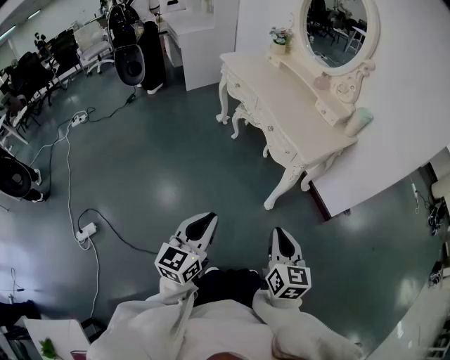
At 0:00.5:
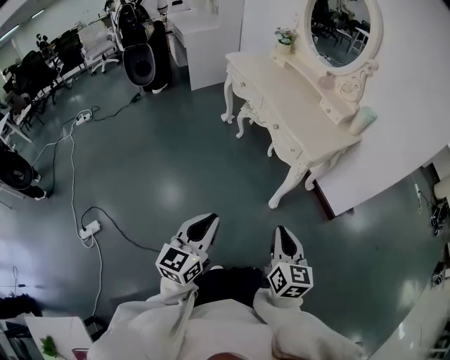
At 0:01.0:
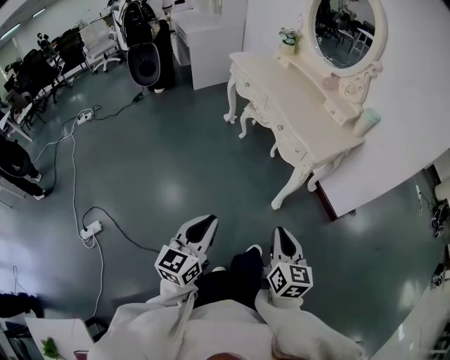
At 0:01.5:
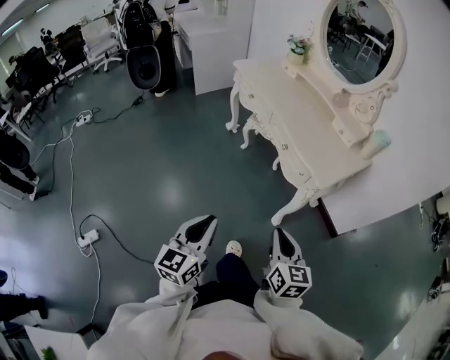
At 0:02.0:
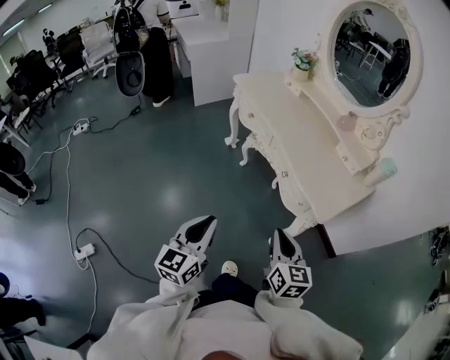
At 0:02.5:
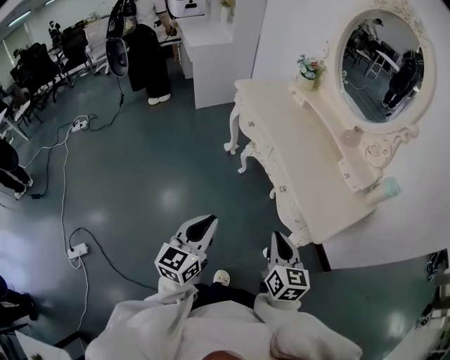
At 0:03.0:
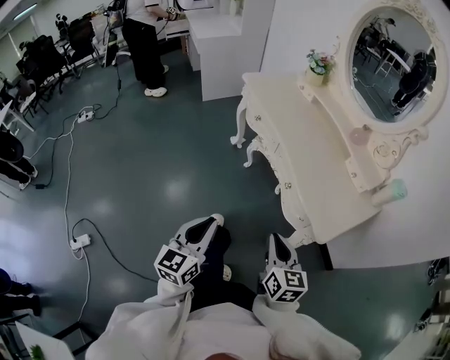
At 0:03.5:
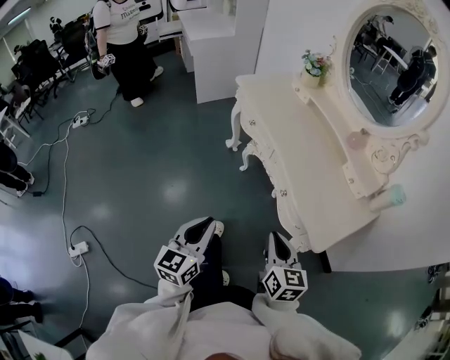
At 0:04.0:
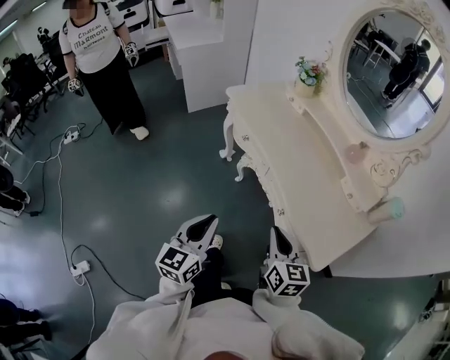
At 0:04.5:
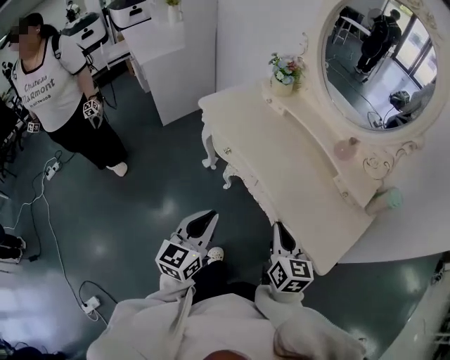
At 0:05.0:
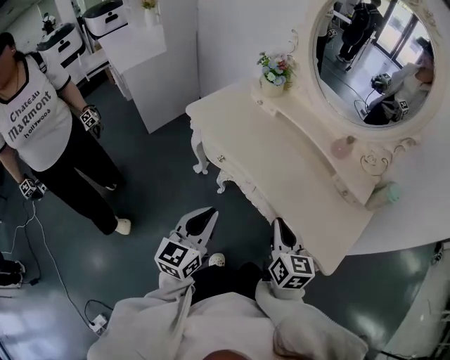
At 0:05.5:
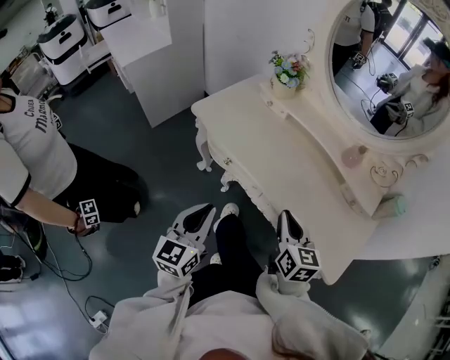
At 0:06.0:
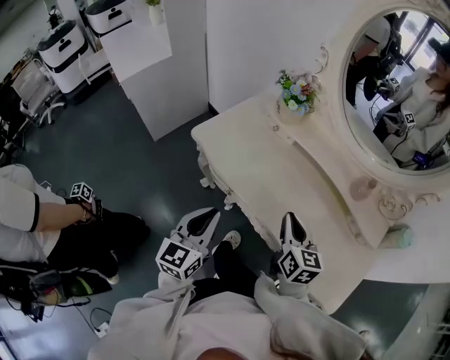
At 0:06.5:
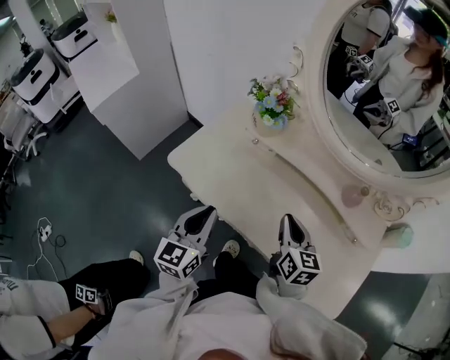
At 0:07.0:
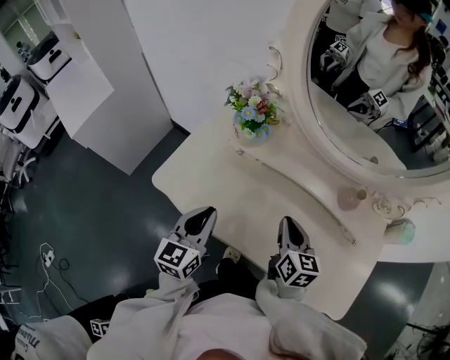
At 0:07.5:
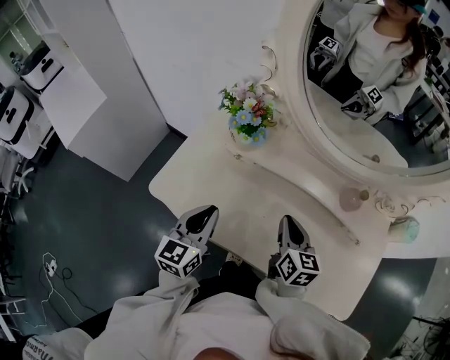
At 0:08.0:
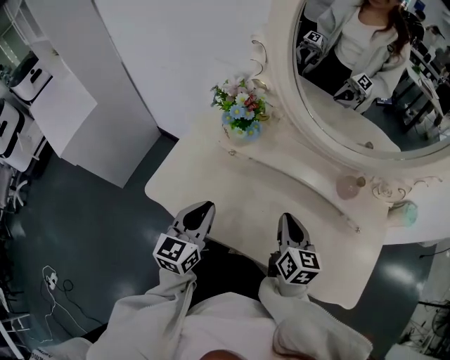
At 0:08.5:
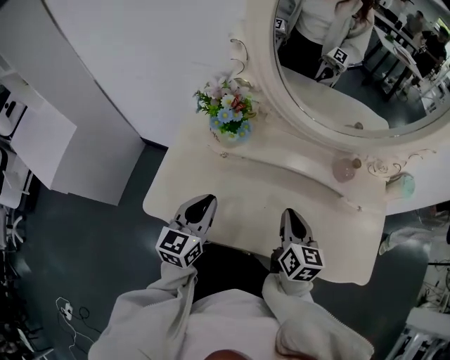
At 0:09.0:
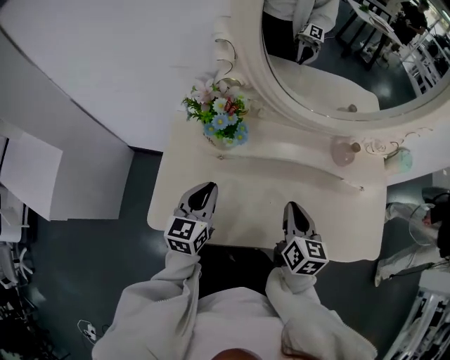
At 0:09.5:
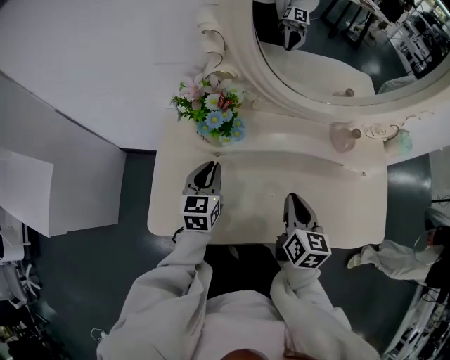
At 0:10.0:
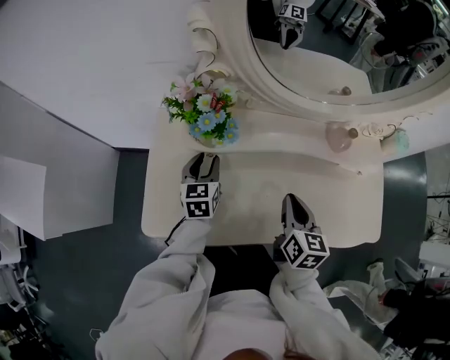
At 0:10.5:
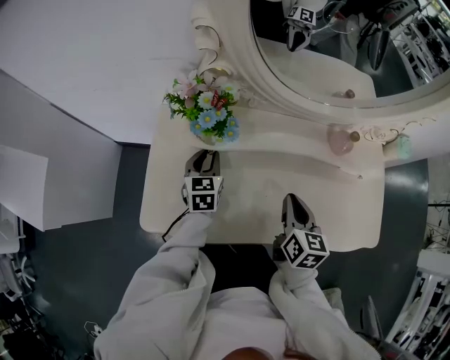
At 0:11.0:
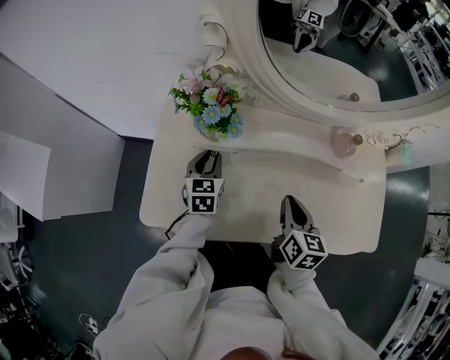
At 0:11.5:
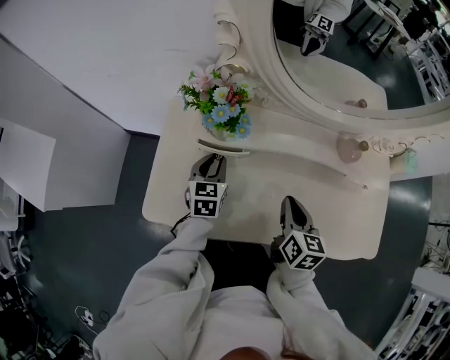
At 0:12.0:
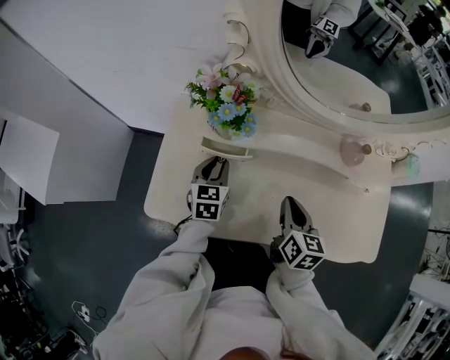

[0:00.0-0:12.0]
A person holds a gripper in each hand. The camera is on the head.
0:00.0 to 0:02.0: The grippers both shift forward by roughly 20 cm.
0:02.0 to 0:04.0: The grippers both shift forward by some 20 cm.
0:04.0 to 0:06.0: The grippers both shift forward by about 30 cm. The right gripper turns by approximately 20 degrees.
0:06.0 to 0:08.0: The right gripper moves forward, roughly 10 cm, and turns by roughly 20 degrees; the left gripper goes some 20 cm forward.
0:08.0 to 0:10.0: The right gripper changes its angle by some 30 degrees. Meanwhile the left gripper goes approximately 20 cm forward and downward, and opens its fingers.
0:10.0 to 0:12.0: The grippers stay close to where they were, moving slightly.

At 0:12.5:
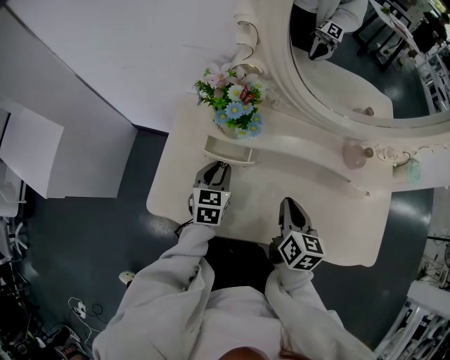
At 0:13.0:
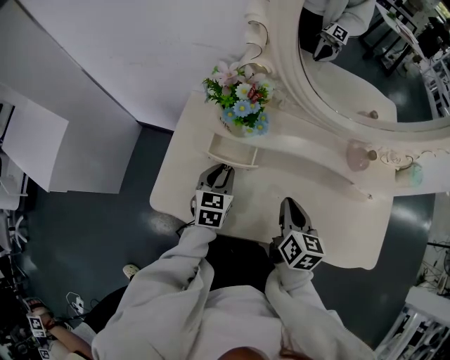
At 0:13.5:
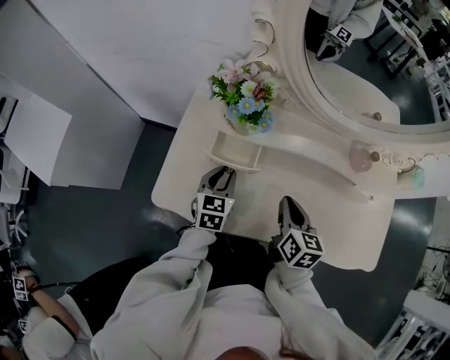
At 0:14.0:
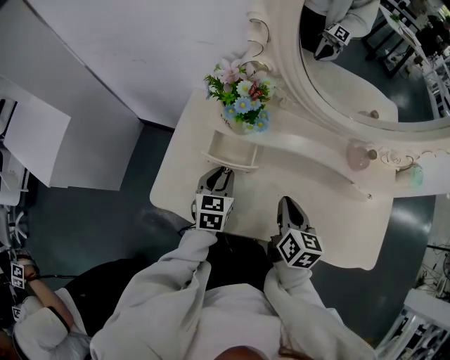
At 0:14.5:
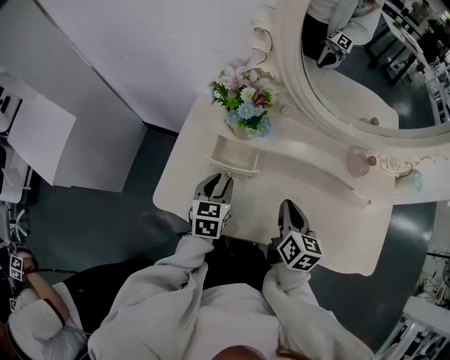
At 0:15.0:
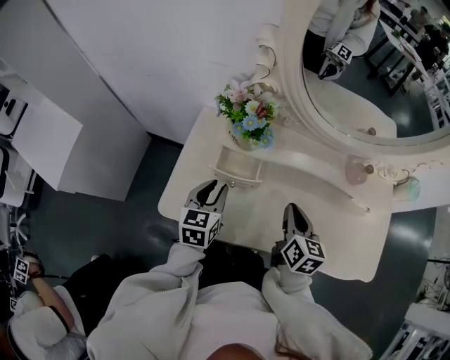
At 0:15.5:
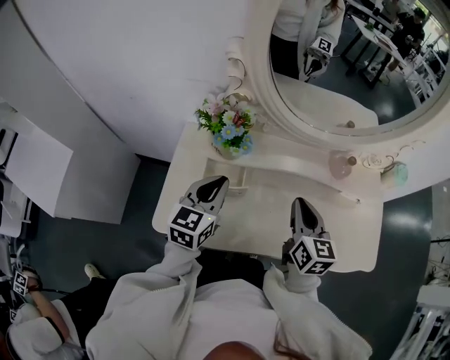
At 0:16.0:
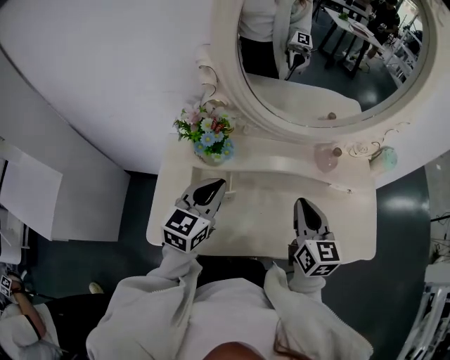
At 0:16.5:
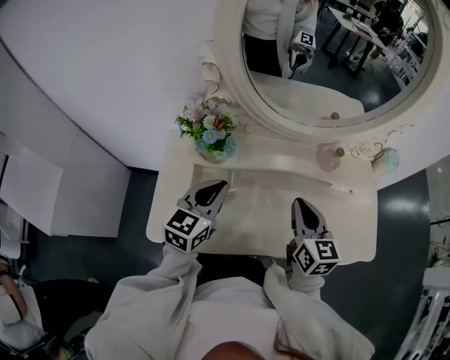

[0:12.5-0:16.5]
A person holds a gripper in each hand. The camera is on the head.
0:12.5 to 0:14.5: The left gripper changes place by roughly 5 cm.
0:14.5 to 0:16.5: The left gripper is displaced upward by some 15 cm, changes its angle by about 30 degrees, and closes its fingers, while the right gripper is displaced upward and to the right by about 10 cm.

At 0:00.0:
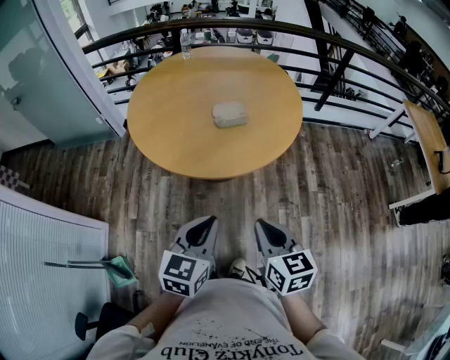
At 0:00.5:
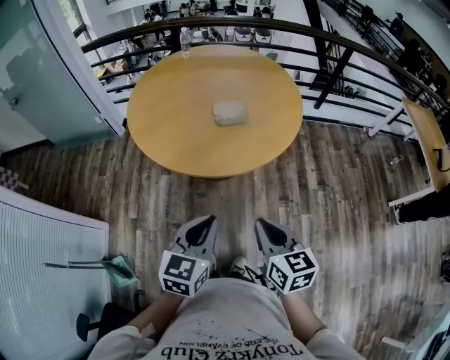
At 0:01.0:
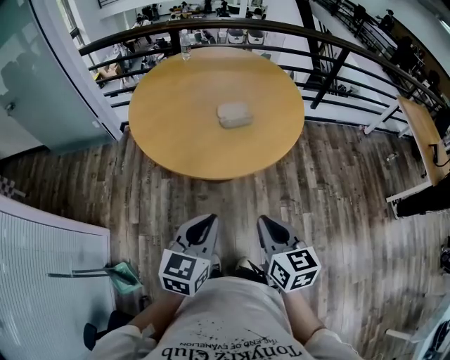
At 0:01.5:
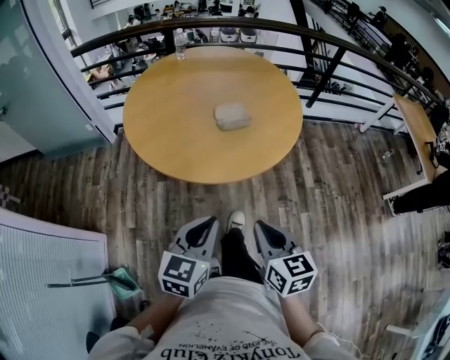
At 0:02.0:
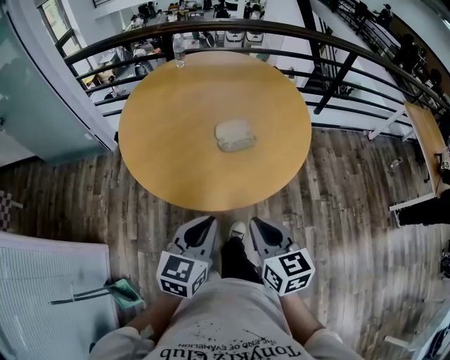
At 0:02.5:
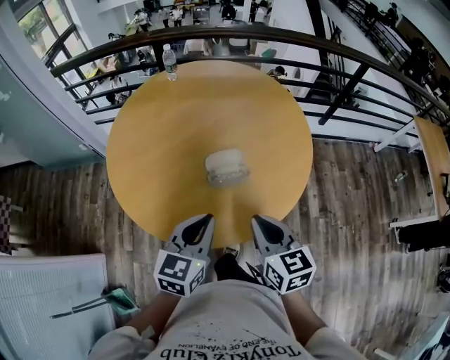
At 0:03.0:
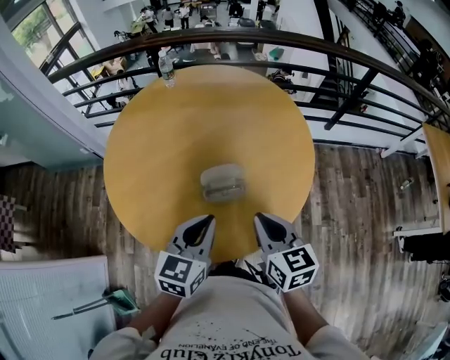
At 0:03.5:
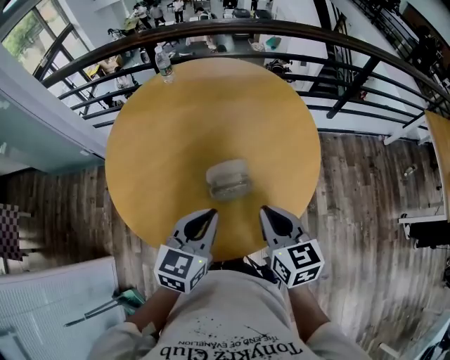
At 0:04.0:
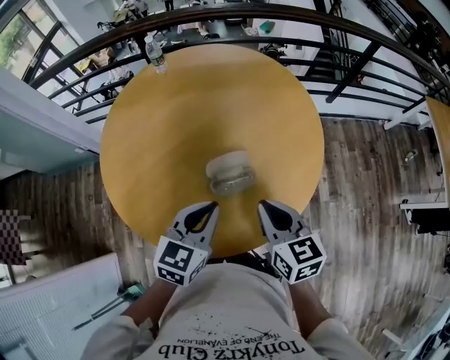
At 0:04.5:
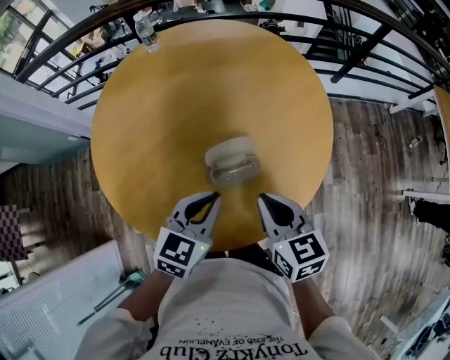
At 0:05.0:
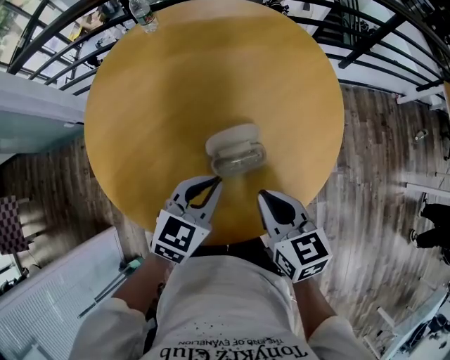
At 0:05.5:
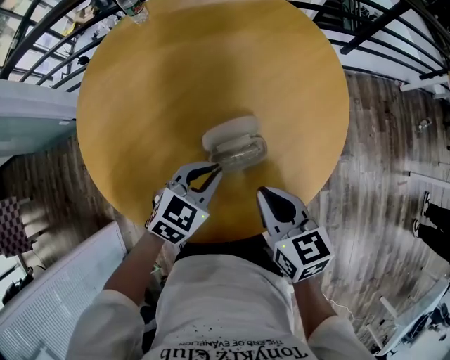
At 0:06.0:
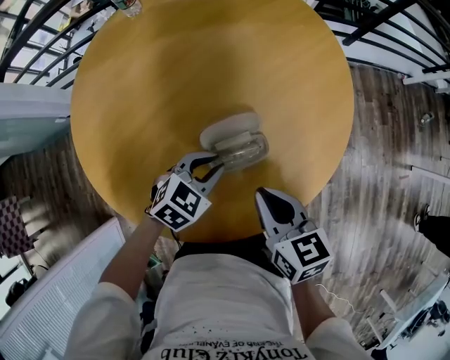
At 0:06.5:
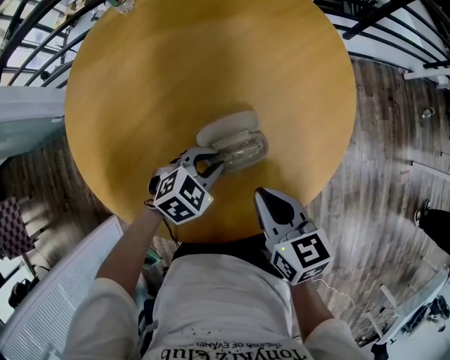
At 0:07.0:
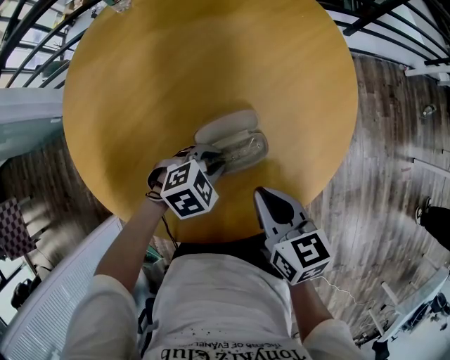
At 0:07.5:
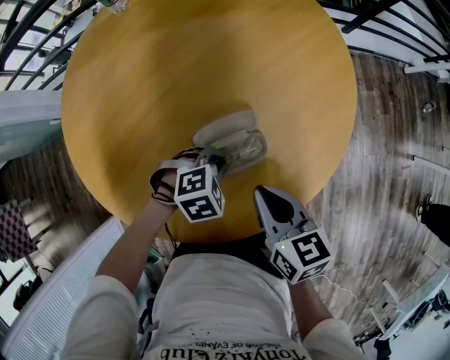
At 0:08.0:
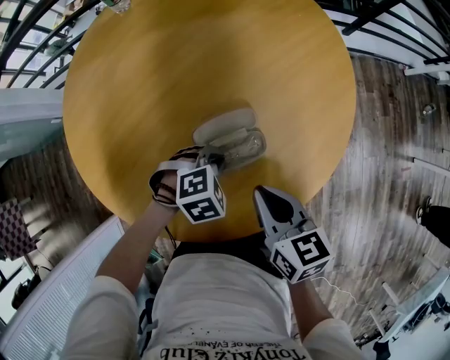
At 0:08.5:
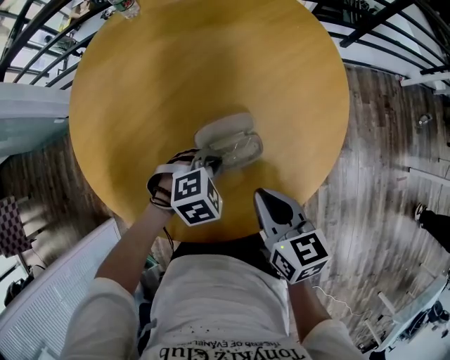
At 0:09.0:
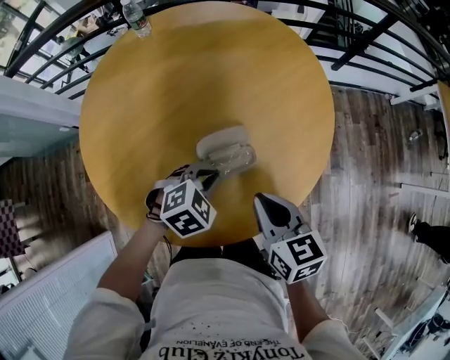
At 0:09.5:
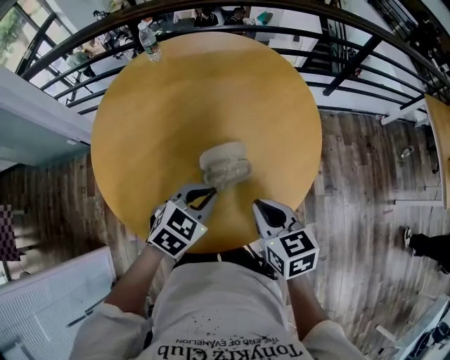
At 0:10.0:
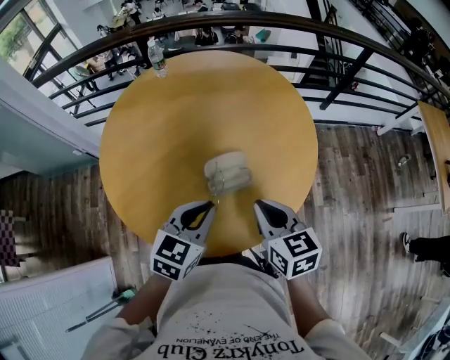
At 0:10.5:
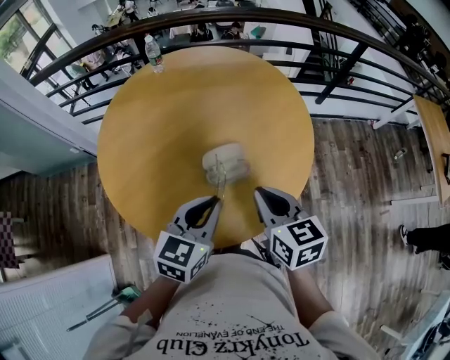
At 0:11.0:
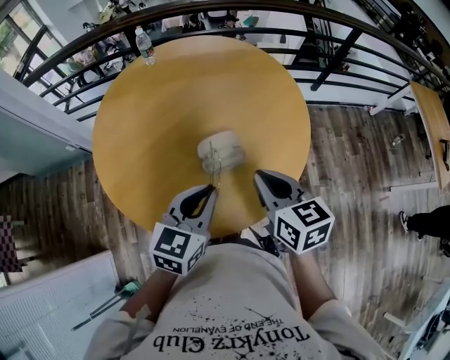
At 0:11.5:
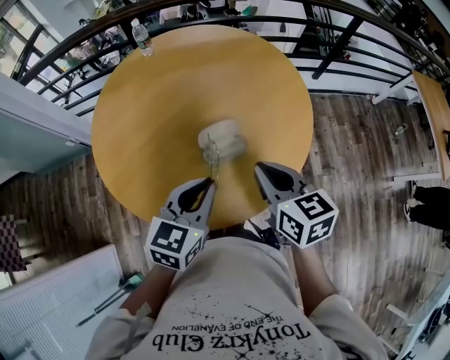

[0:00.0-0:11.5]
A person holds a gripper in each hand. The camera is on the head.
0:00.0 to 0:02.0: Both grippers move forward and to the left, some 15 cm.
0:02.0 to 0:04.0: The grippers both shift forward by about 30 cm.
0:04.0 to 0:06.0: The right gripper is displaced downward by about 10 cm; the left gripper heads downward and forward, covering approximately 20 cm, and rotates some 30 degrees.
0:06.0 to 0:07.5: The left gripper heads downward, covering approximately 5 cm, and rotates some 30 degrees.
0:07.5 to 0:09.5: The left gripper is displaced upward by about 20 cm, and turns by approximately 40 degrees, while the right gripper goes approximately 10 cm upward.
0:09.5 to 0:11.5: The left gripper heads upward and backward, covering approximately 10 cm, and turns by approximately 30 degrees. The right gripper goes about 5 cm upward.
